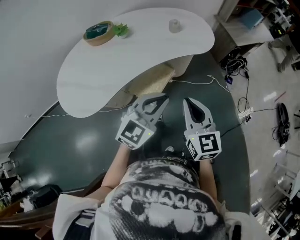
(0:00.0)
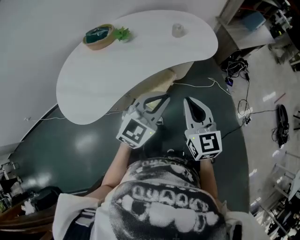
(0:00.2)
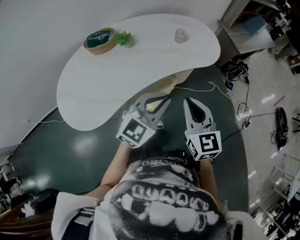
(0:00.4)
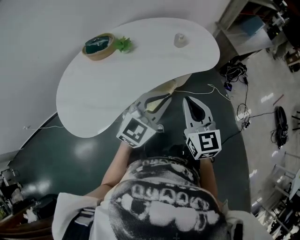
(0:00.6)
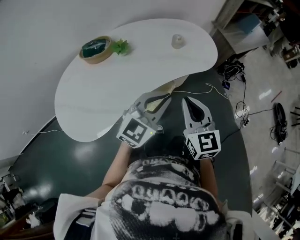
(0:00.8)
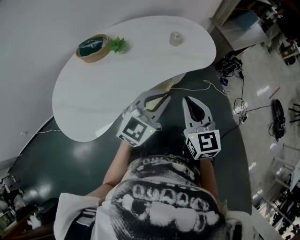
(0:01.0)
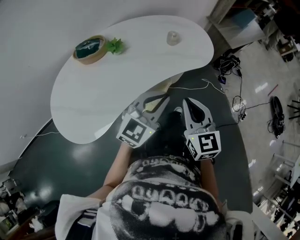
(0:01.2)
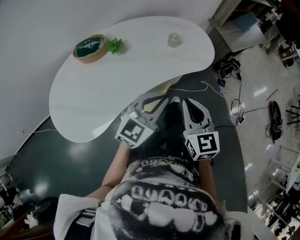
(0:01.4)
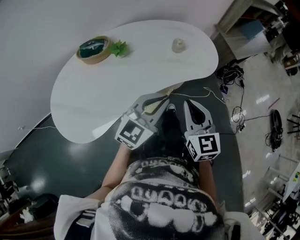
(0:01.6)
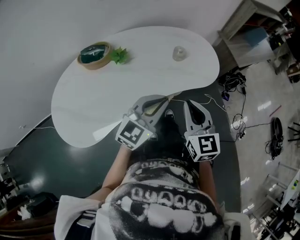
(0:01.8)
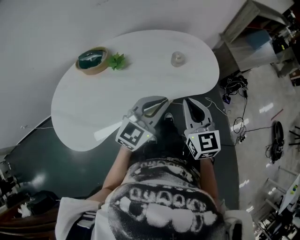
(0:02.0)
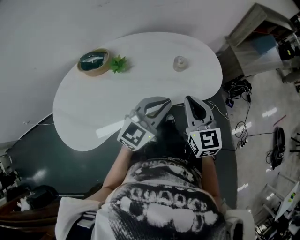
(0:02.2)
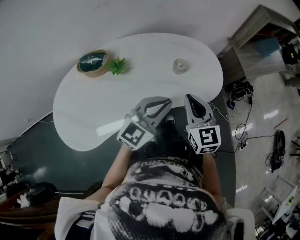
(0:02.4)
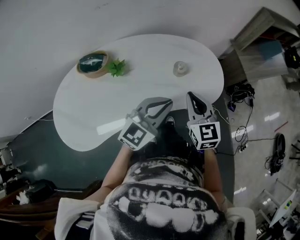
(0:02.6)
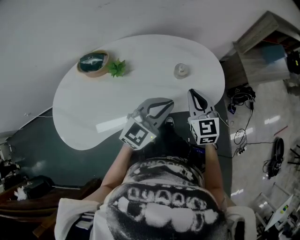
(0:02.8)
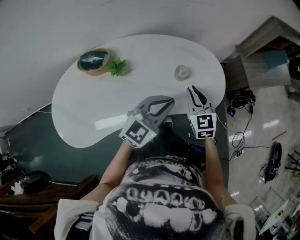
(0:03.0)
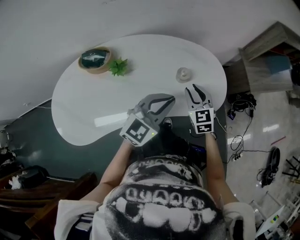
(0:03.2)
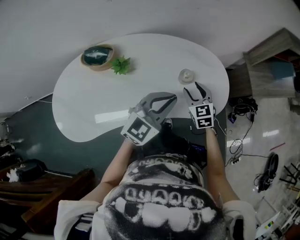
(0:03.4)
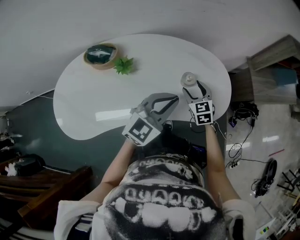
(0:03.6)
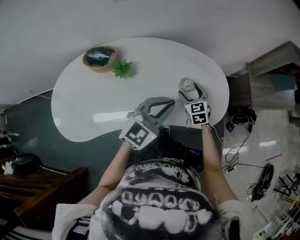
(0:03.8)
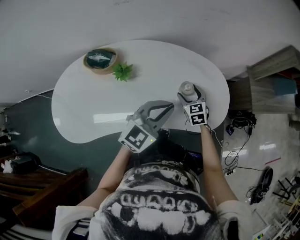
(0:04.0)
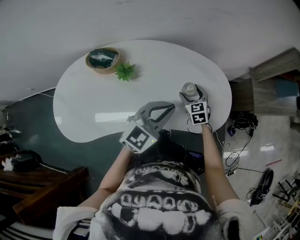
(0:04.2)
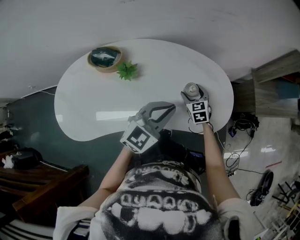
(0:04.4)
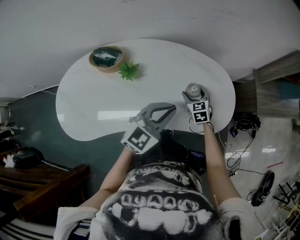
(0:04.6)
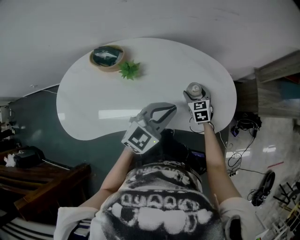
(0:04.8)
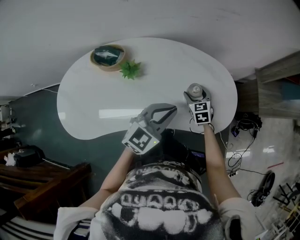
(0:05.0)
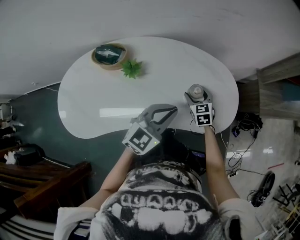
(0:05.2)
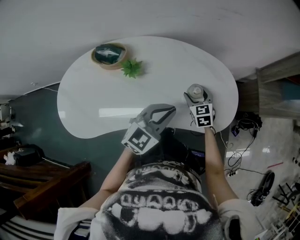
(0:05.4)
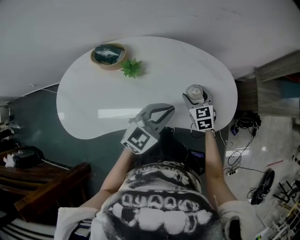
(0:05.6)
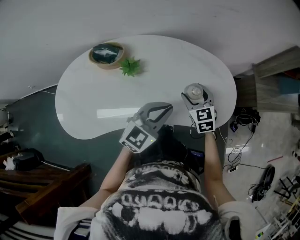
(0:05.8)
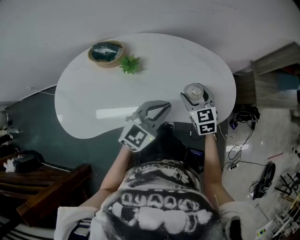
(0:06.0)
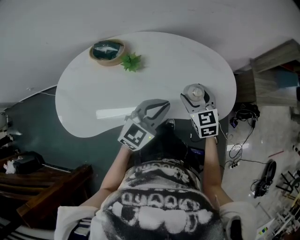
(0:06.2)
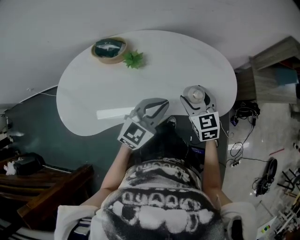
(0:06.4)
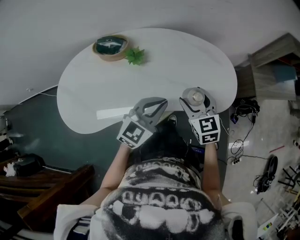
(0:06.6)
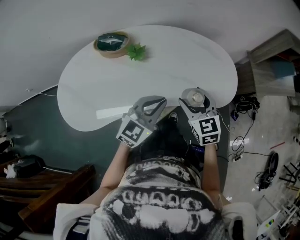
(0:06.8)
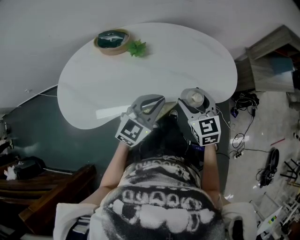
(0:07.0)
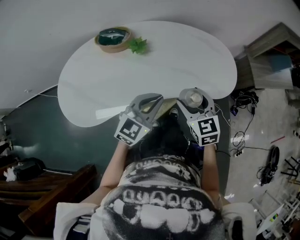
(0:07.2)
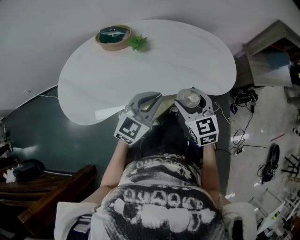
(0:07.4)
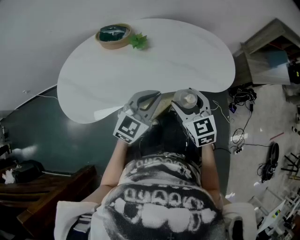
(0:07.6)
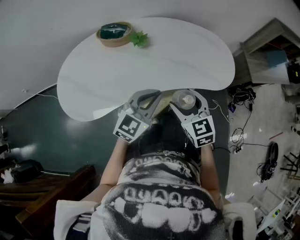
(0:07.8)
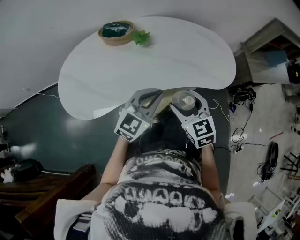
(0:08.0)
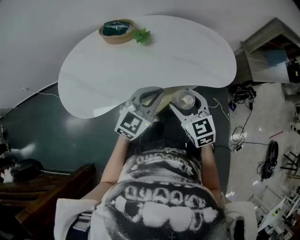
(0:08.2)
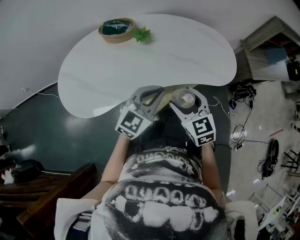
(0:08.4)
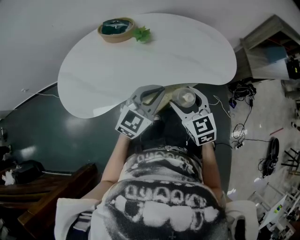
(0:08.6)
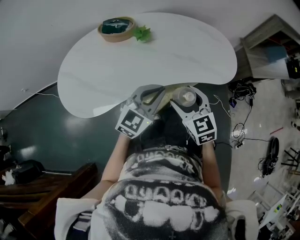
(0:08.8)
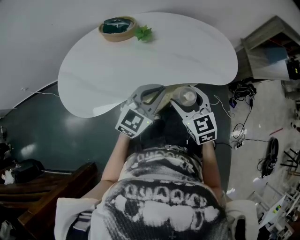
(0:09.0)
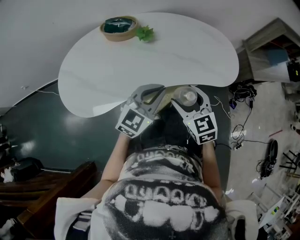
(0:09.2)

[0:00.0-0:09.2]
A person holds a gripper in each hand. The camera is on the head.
0:00.0 to 0:01.6: Both grippers move forward and to the left, about 15 cm.
0:01.6 to 0:03.0: Both grippers travel together forward, about 20 cm.
0:03.0 to 0:04.6: The left gripper shifts by approximately 5 cm; the right gripper is displaced downward and forward by some 20 cm, and opens up.
0:04.6 to 0:06.2: The left gripper changes place by approximately 5 cm, while the right gripper heads upward and backward, covering about 15 cm.
0:06.2 to 0:07.6: The left gripper moves backward and to the left, some 15 cm. The right gripper heads backward, covering some 20 cm.
0:07.6 to 0:09.2: The grippers move only a little.

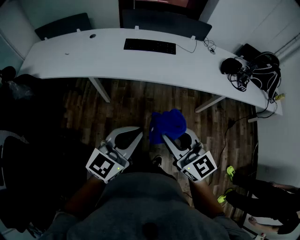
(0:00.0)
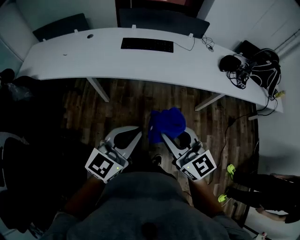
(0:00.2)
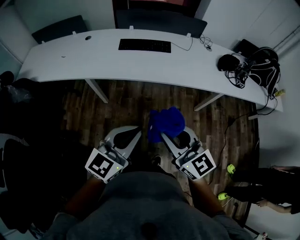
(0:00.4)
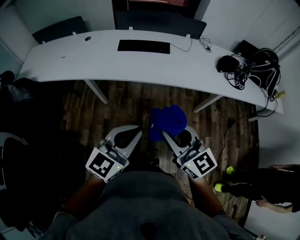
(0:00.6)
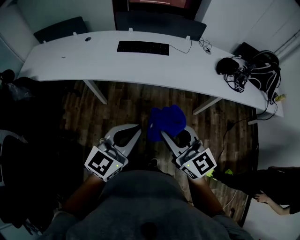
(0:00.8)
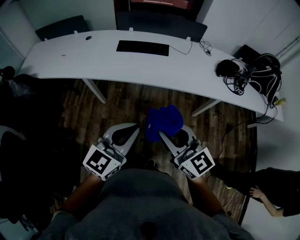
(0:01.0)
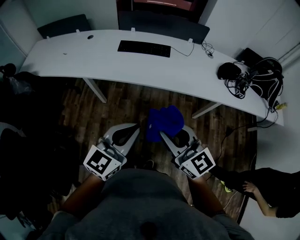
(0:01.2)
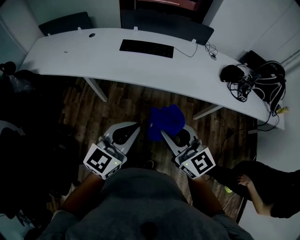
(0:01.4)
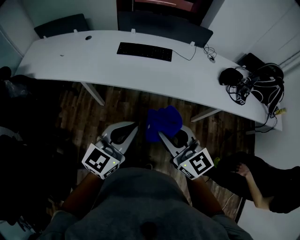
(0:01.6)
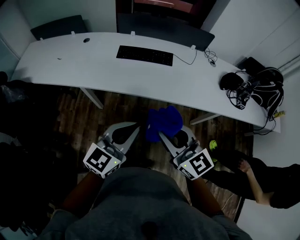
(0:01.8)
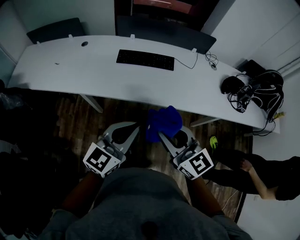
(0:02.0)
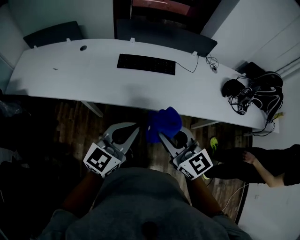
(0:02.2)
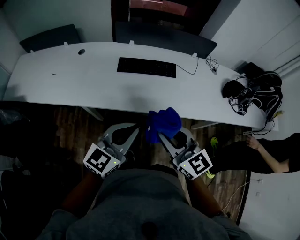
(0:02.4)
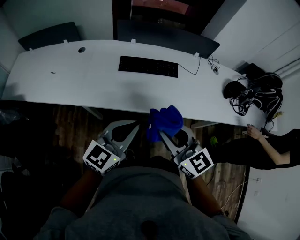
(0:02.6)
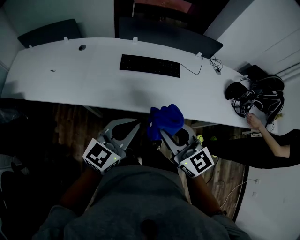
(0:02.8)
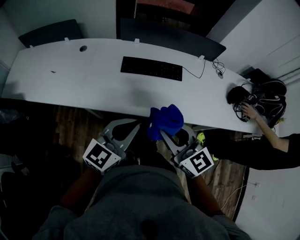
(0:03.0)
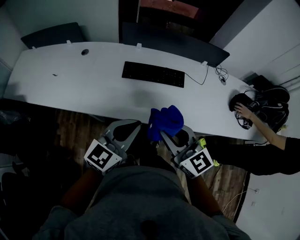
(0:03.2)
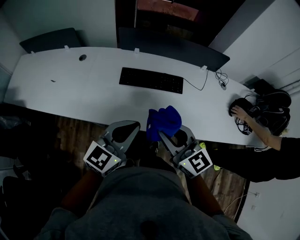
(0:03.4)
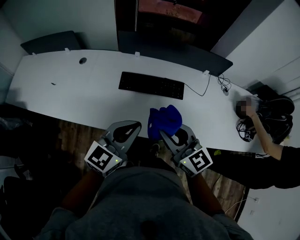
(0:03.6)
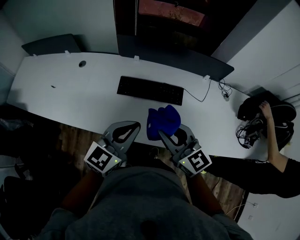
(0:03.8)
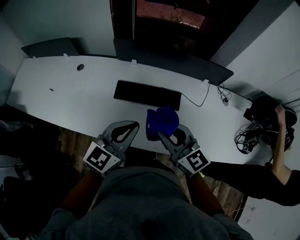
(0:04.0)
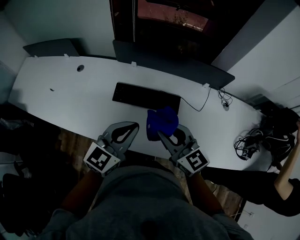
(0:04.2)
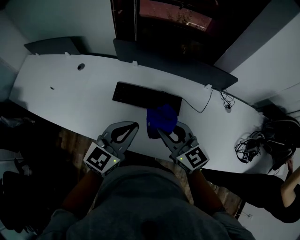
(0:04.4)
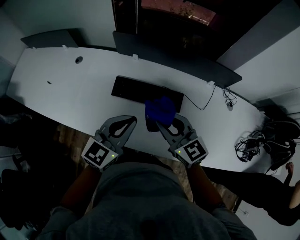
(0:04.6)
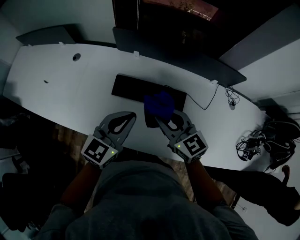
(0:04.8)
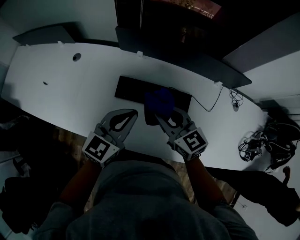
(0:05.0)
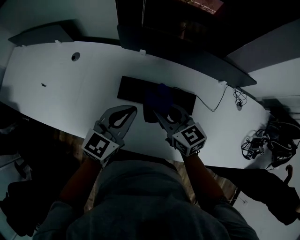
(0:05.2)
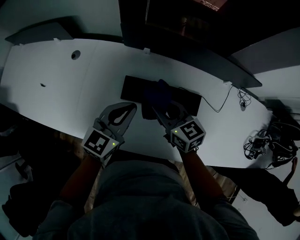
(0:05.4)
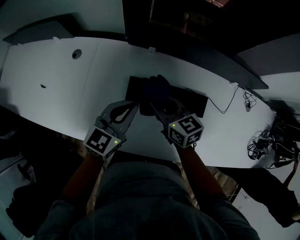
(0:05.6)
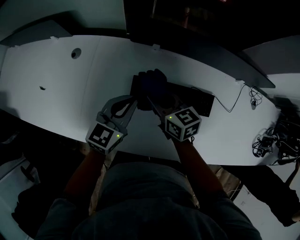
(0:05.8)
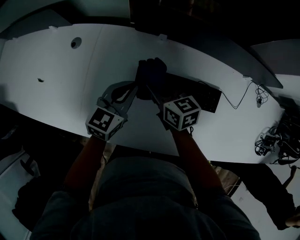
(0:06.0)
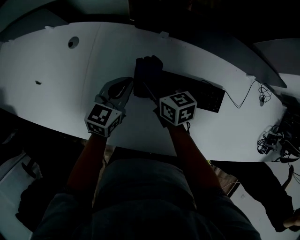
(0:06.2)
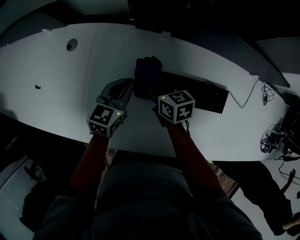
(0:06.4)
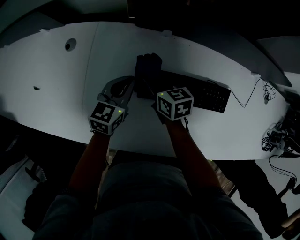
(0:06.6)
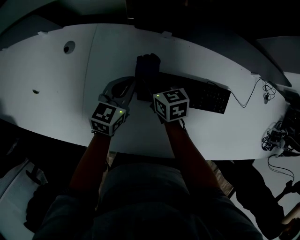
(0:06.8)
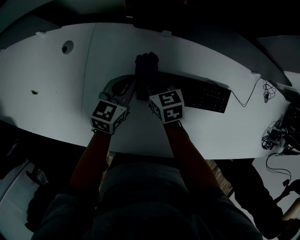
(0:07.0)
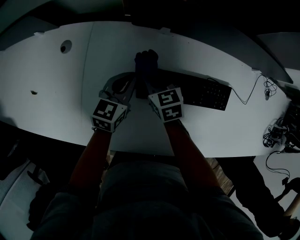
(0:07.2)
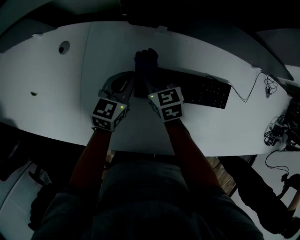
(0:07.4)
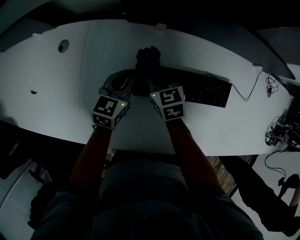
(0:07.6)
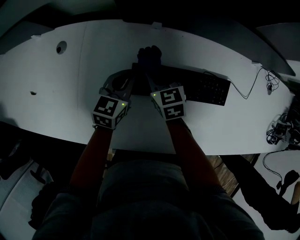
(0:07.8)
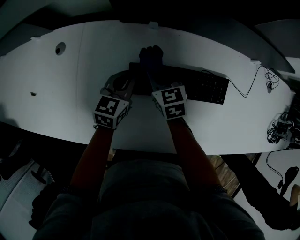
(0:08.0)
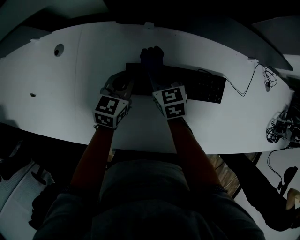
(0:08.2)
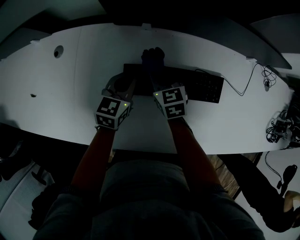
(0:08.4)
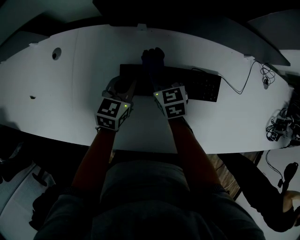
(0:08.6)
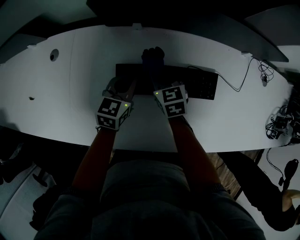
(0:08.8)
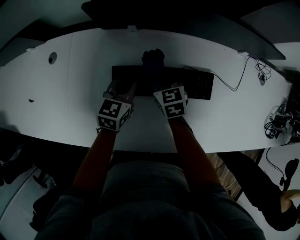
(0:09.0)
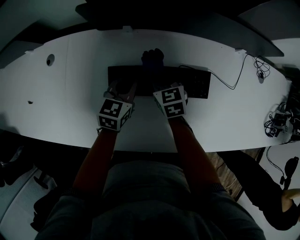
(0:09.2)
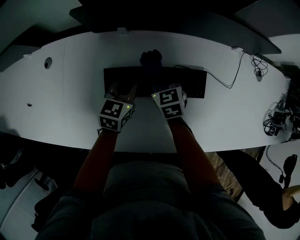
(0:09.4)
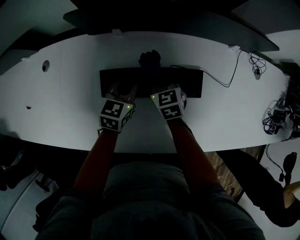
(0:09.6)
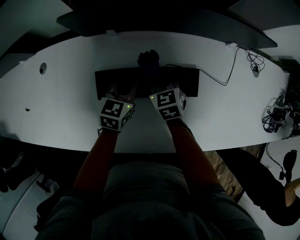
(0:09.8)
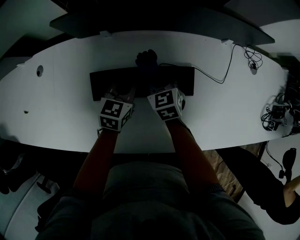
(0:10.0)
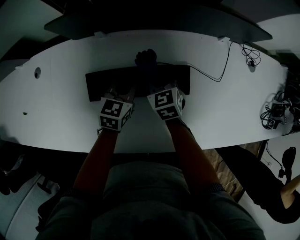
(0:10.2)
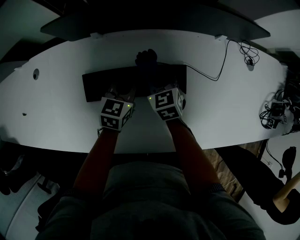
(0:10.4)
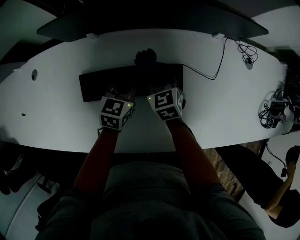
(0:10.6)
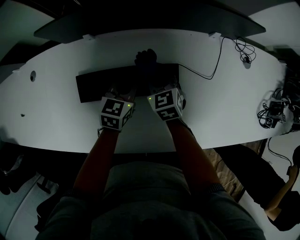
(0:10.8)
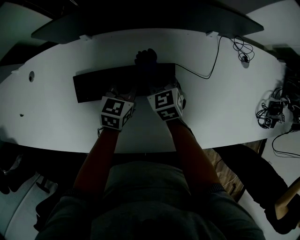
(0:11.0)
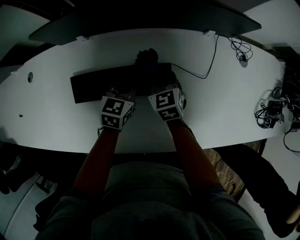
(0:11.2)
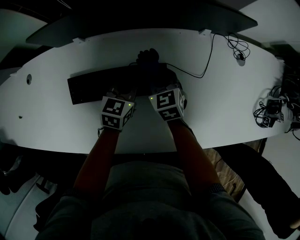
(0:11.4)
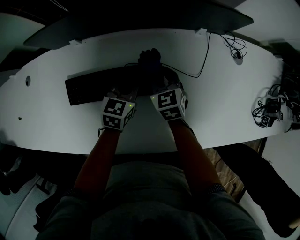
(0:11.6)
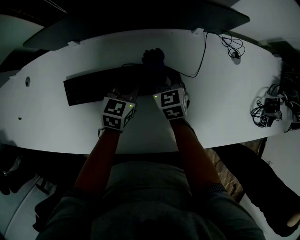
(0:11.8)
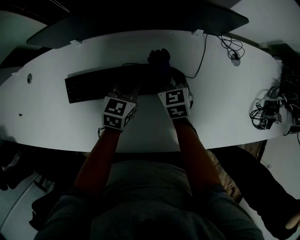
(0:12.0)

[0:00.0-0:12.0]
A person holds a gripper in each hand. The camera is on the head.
0:00.0 to 0:01.6: Both grippers travel together forward and to the right, some 10 cm.
0:01.6 to 0:03.0: Both grippers travel together forward and to the left, some 25 cm.
0:03.0 to 0:04.4: The grippers both shift forward and to the right by about 25 cm.
0:04.4 to 0:06.0: Both grippers travel together forward, downward and to the left, approximately 35 cm. The right gripper swivels about 30 degrees.
0:06.0 to 0:07.6: The right gripper goes roughly 10 cm downward. The left gripper heads downward and forward, covering approximately 10 cm.
0:07.6 to 0:09.0: Both grippers move to the right, some 10 cm.
0:09.0 to 0:10.4: Both grippers move to the right, roughly 15 cm.
0:10.4 to 0:12.0: The grippers both shift to the right by approximately 15 cm.

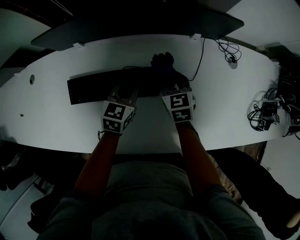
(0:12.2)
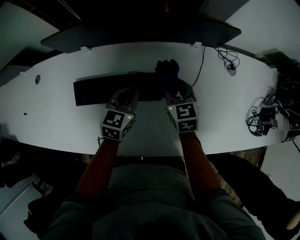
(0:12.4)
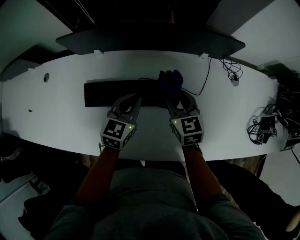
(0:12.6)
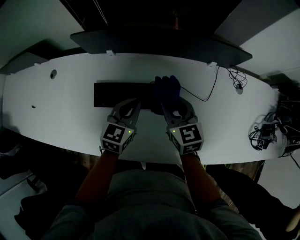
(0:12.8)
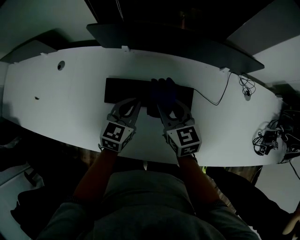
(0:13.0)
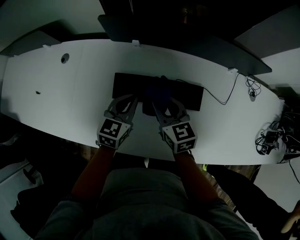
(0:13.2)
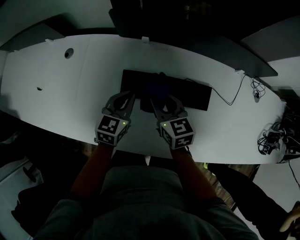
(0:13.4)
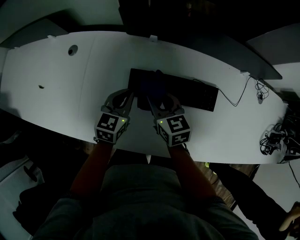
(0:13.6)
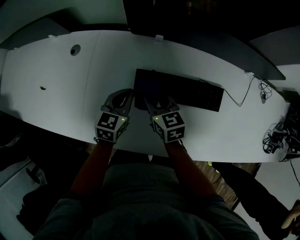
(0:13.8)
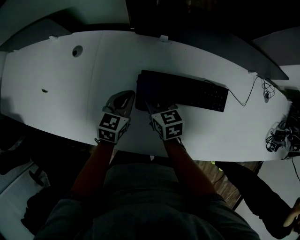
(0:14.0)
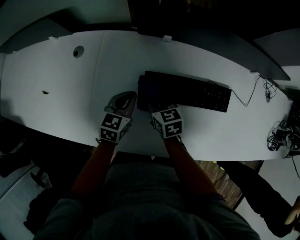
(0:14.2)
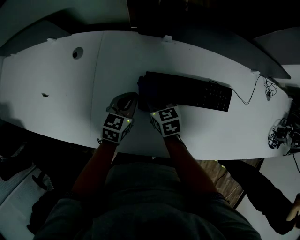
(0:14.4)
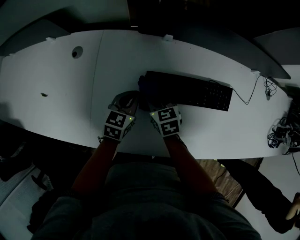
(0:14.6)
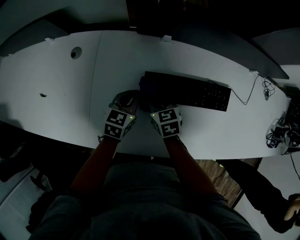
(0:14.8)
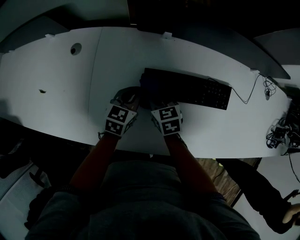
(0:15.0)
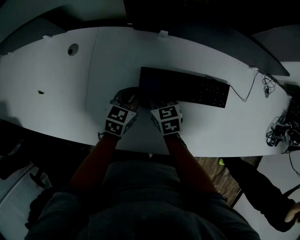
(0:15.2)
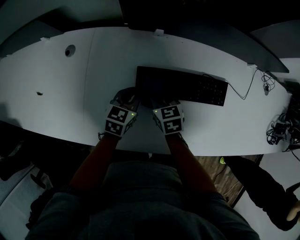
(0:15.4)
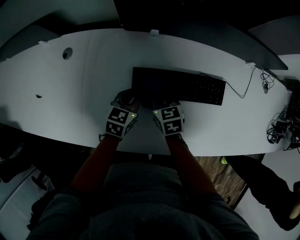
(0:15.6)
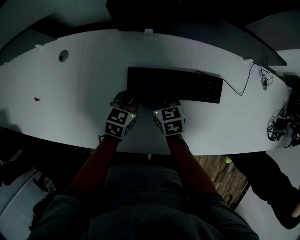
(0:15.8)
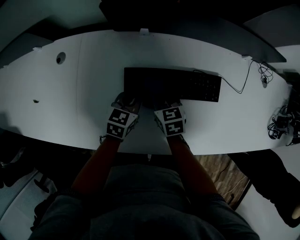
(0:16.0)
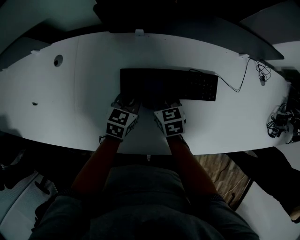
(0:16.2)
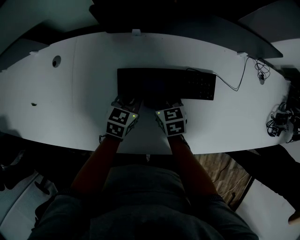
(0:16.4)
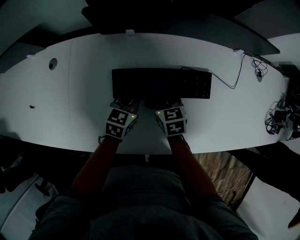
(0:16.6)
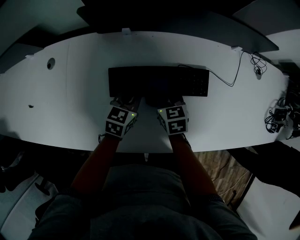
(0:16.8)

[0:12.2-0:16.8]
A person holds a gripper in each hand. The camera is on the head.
0:12.2 to 0:13.8: Both grippers move to the left, some 40 cm. The right gripper changes its angle by about 20 degrees.
0:13.8 to 0:15.2: Both grippers travel together downward, approximately 5 cm.
0:15.2 to 0:16.8: The grippers both shift to the right by approximately 15 cm.
